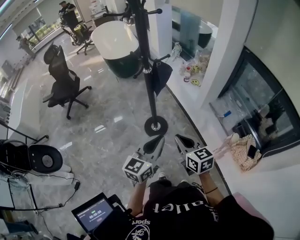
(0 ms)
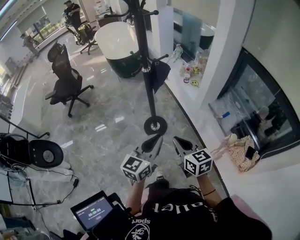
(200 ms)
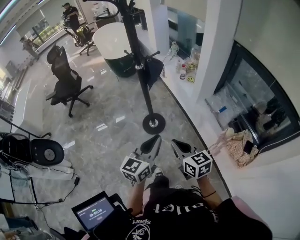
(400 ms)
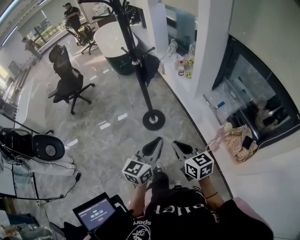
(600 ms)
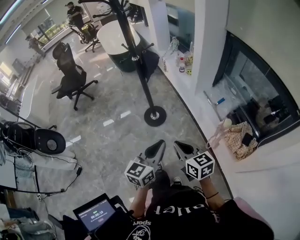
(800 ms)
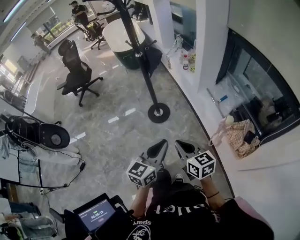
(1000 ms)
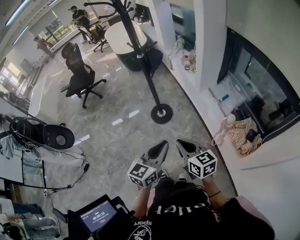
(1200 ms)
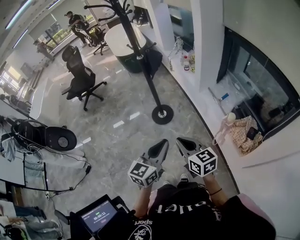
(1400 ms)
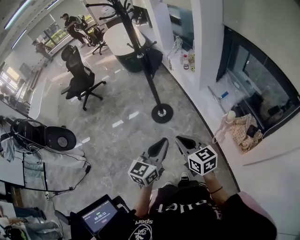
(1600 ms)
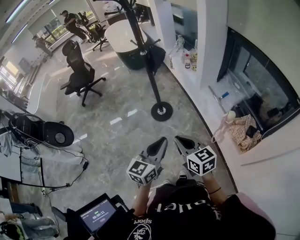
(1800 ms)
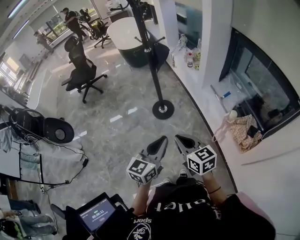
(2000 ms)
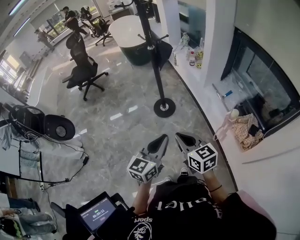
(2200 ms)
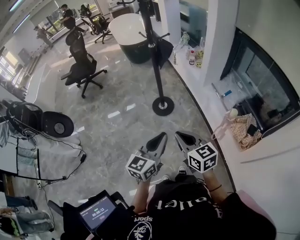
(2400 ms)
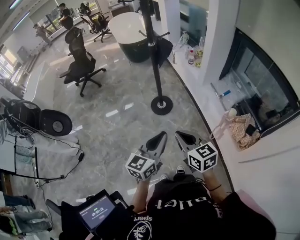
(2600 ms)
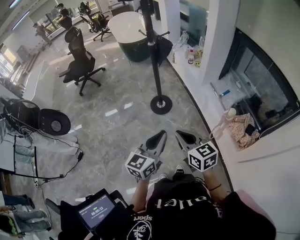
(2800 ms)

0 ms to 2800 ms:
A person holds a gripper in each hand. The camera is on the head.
0 ms to 1400 ms: The two grippers go roughly 30 cm backward and to the right.
1400 ms to 2800 ms: The two grippers go about 5 cm to the left.

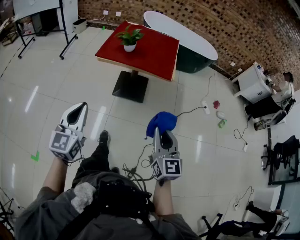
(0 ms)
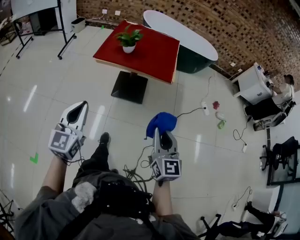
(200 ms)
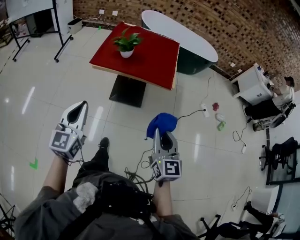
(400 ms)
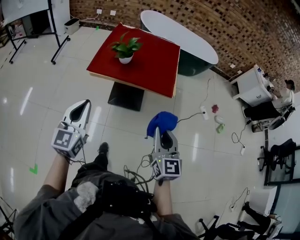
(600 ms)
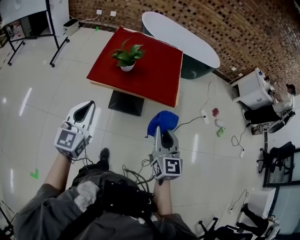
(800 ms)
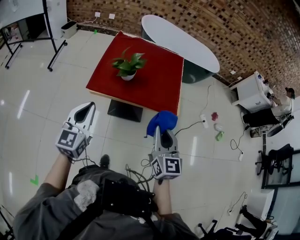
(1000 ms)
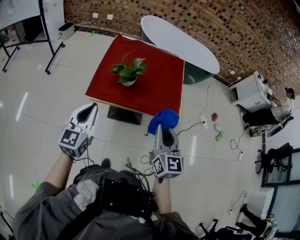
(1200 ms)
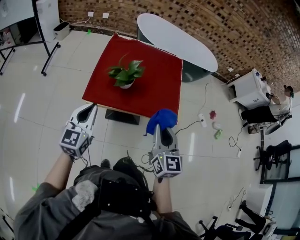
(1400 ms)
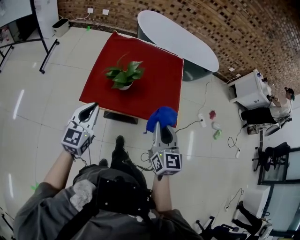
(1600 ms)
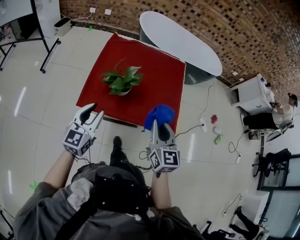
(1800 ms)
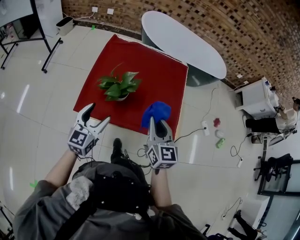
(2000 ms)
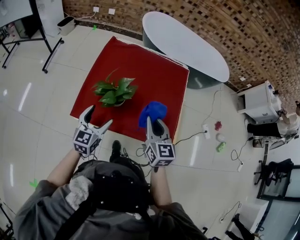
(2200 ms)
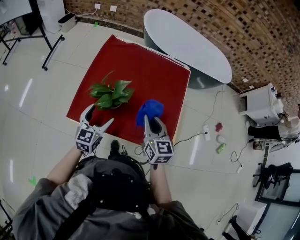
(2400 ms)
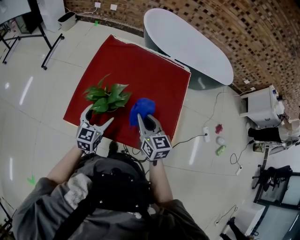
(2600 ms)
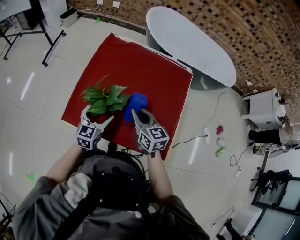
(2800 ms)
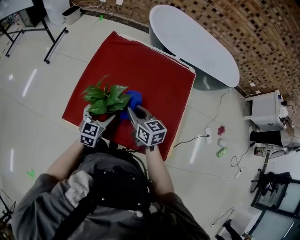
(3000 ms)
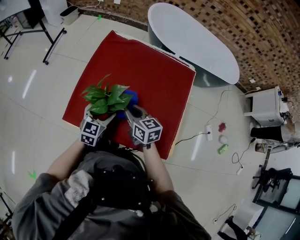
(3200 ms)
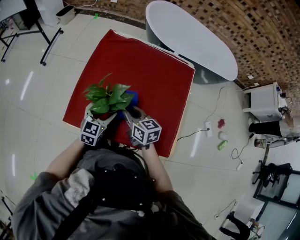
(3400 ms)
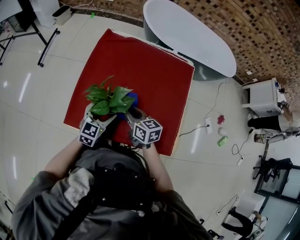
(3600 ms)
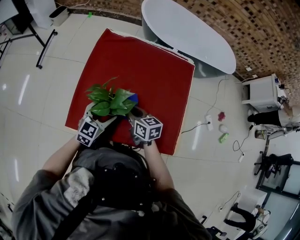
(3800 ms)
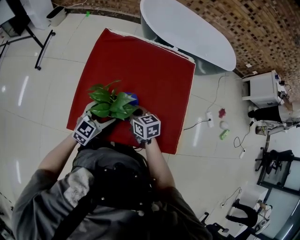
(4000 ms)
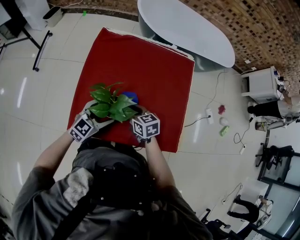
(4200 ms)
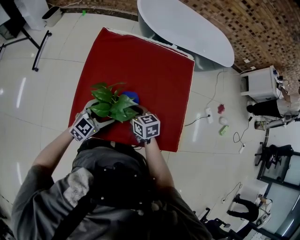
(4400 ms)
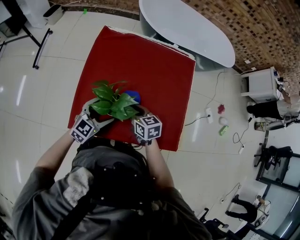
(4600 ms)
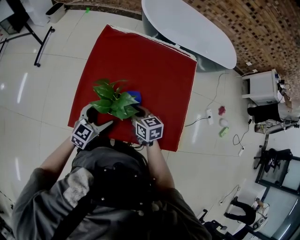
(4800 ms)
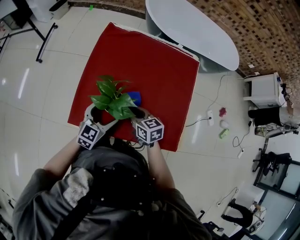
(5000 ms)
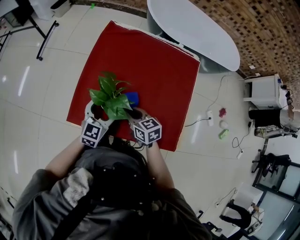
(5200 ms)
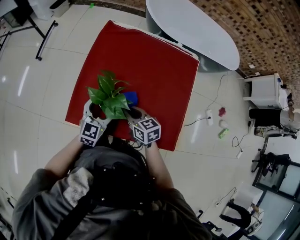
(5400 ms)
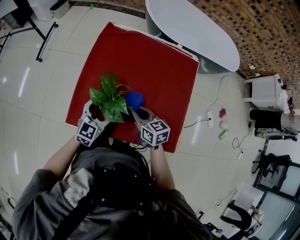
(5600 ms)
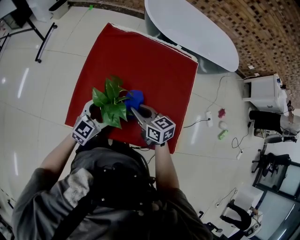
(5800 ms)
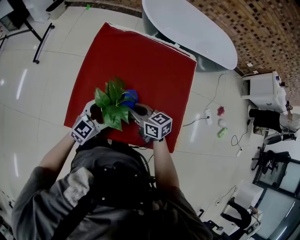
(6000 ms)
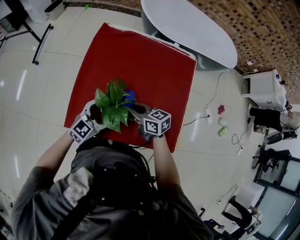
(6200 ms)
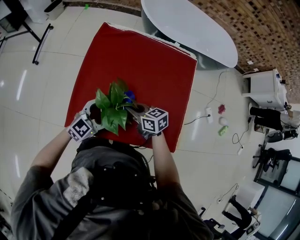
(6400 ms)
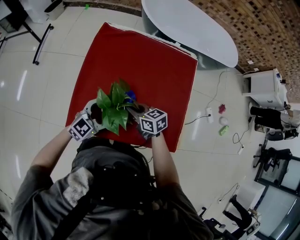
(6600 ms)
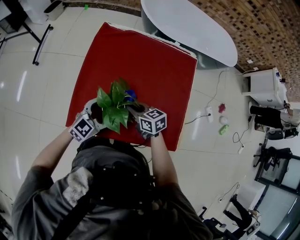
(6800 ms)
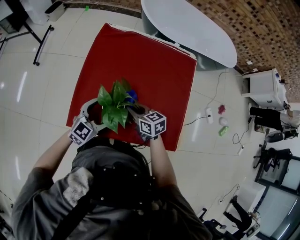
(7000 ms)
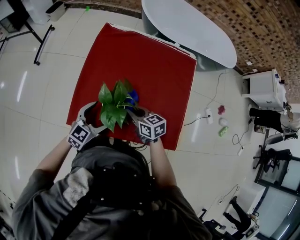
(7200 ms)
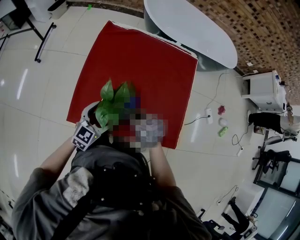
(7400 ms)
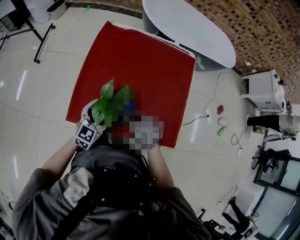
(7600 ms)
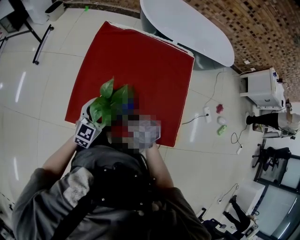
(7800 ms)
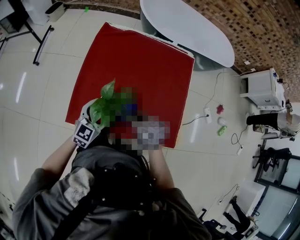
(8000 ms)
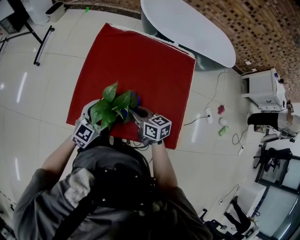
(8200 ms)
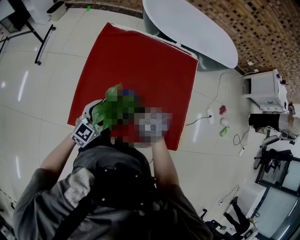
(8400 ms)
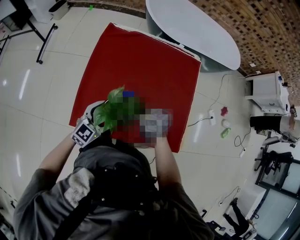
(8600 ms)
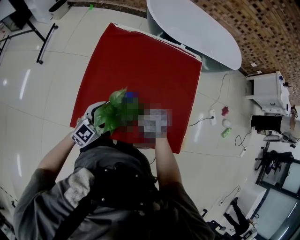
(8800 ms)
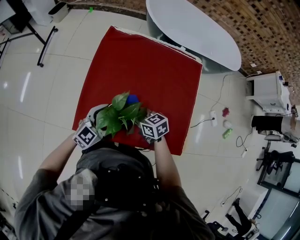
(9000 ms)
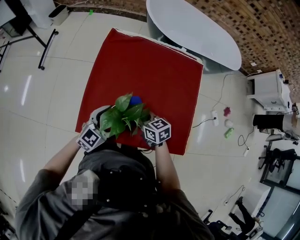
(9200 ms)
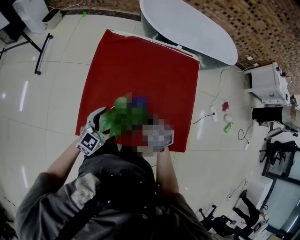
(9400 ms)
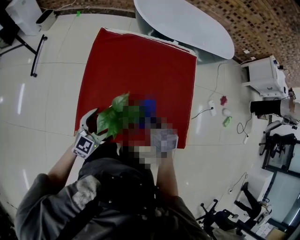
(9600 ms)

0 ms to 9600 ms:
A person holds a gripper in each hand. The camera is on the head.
0 ms to 1600 ms: The pair of grippers is taken forward, approximately 60 cm.
1600 ms to 3200 ms: The right gripper shifts about 40 cm forward and downward, and swivels some 40 degrees. The left gripper travels forward, downward and to the right by some 35 cm, and opens up.
3200 ms to 4800 ms: The right gripper shifts about 5 cm downward; the left gripper swivels roughly 20 degrees.
4800 ms to 6400 ms: The grippers make only small movements.
6400 ms to 8000 ms: The right gripper shifts roughly 10 cm backward.
8000 ms to 9600 ms: The left gripper travels to the left by about 5 cm; the right gripper ends up approximately 5 cm from where it was, and turns by roughly 20 degrees.

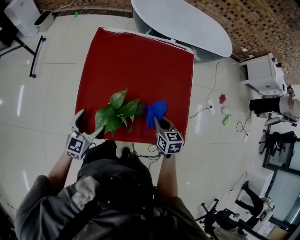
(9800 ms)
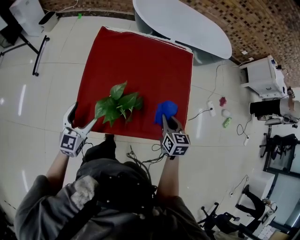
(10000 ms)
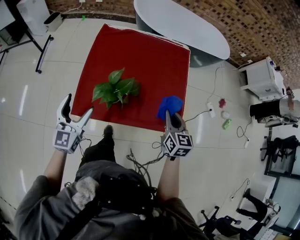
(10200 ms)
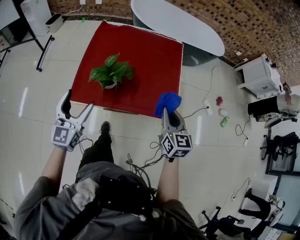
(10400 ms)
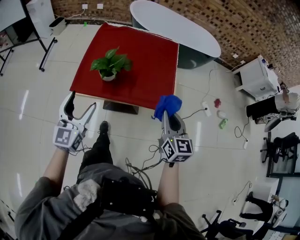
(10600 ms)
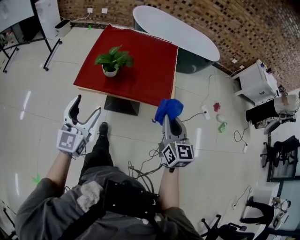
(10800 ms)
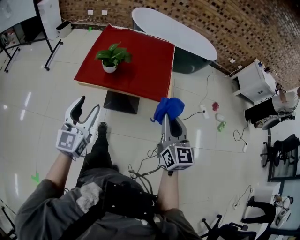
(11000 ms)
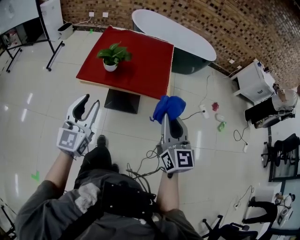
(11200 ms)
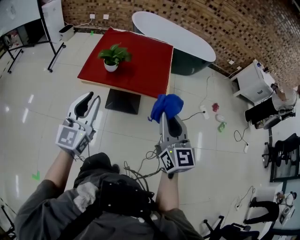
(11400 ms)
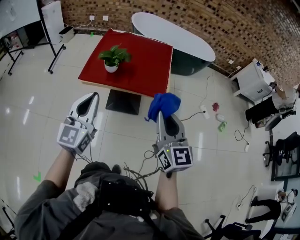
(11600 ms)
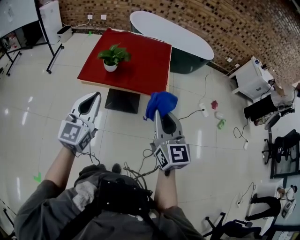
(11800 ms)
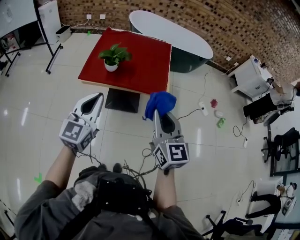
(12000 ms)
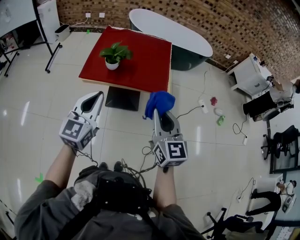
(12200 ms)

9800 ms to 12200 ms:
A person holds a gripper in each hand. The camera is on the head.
9800 ms to 11000 ms: Both grippers are carried backward, roughly 50 cm. Both grippers move upward, some 25 cm. The right gripper tilts its fingers roughly 40 degrees upward. The left gripper rotates some 30 degrees, and closes up.
11000 ms to 12200 ms: The right gripper is displaced backward and to the left by approximately 10 cm, while the left gripper travels upward by some 5 cm, and closes up.

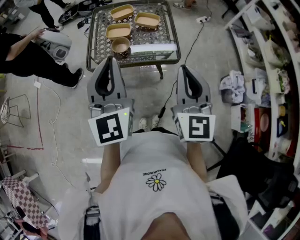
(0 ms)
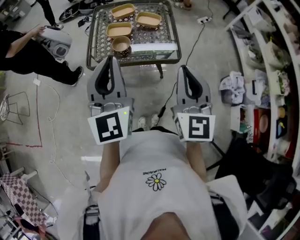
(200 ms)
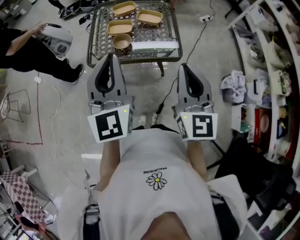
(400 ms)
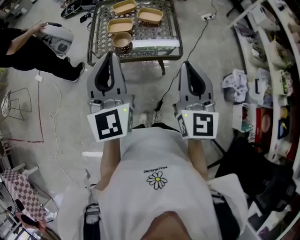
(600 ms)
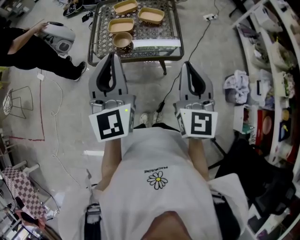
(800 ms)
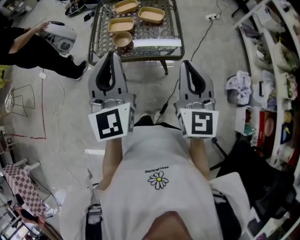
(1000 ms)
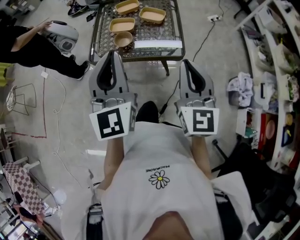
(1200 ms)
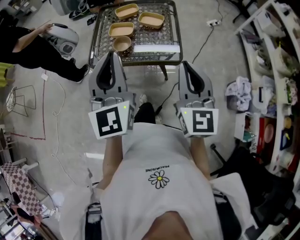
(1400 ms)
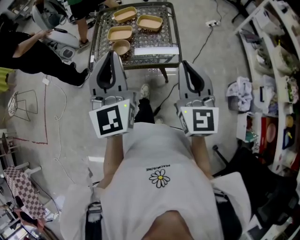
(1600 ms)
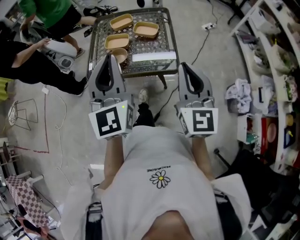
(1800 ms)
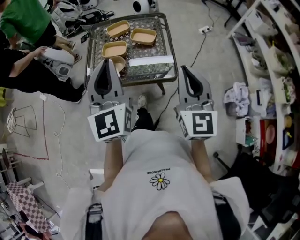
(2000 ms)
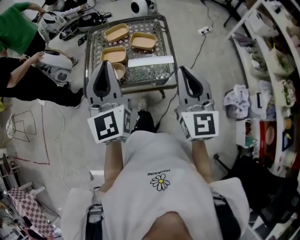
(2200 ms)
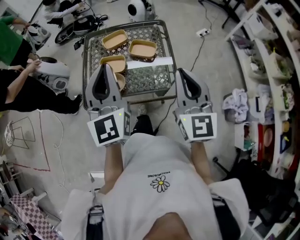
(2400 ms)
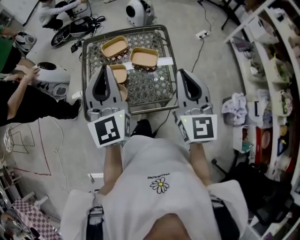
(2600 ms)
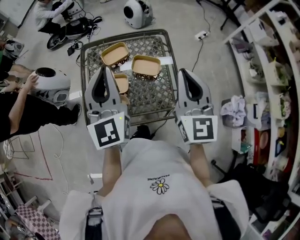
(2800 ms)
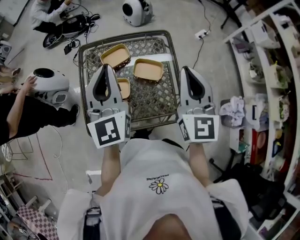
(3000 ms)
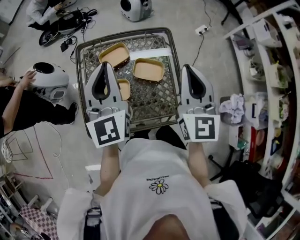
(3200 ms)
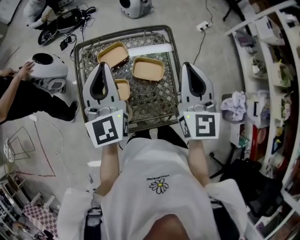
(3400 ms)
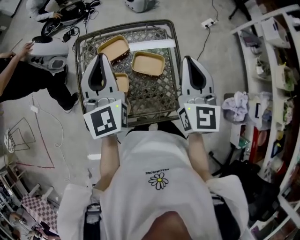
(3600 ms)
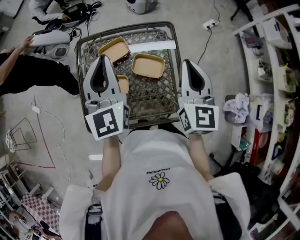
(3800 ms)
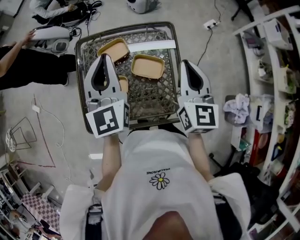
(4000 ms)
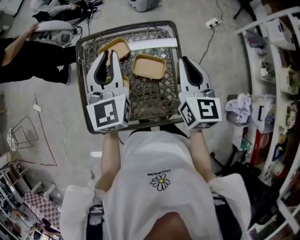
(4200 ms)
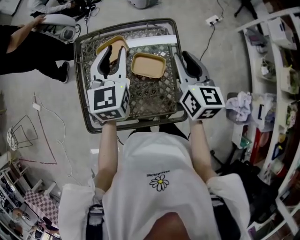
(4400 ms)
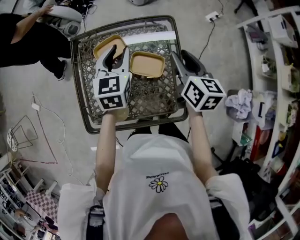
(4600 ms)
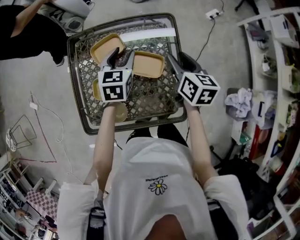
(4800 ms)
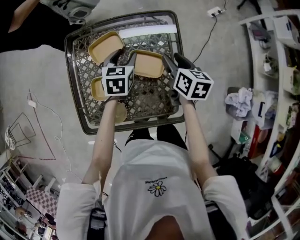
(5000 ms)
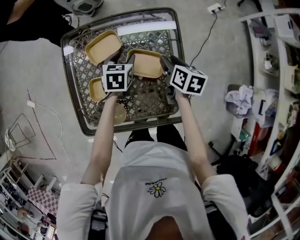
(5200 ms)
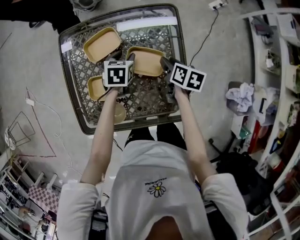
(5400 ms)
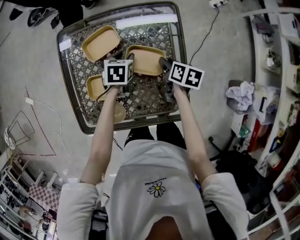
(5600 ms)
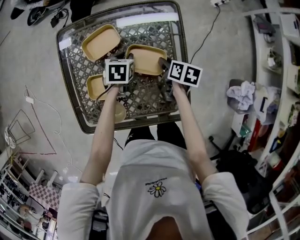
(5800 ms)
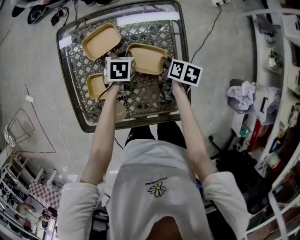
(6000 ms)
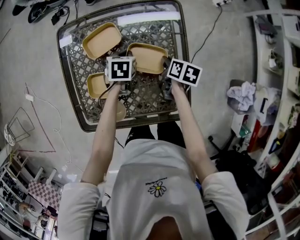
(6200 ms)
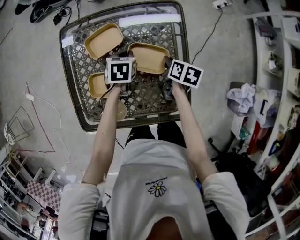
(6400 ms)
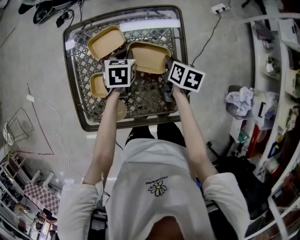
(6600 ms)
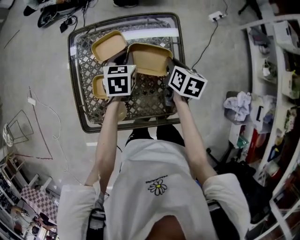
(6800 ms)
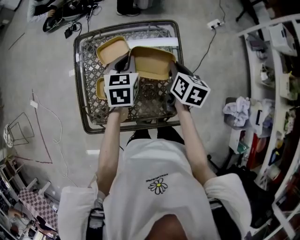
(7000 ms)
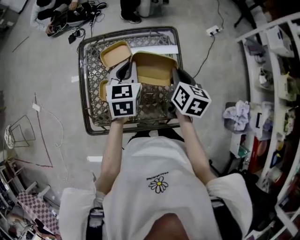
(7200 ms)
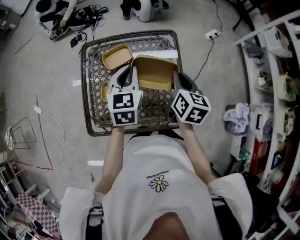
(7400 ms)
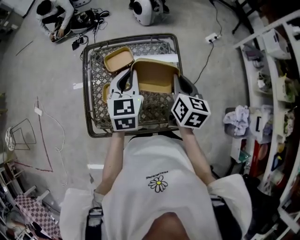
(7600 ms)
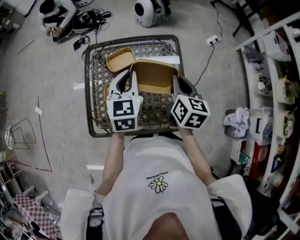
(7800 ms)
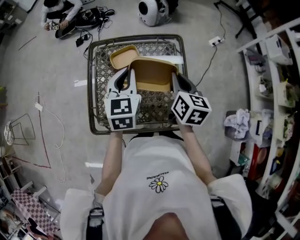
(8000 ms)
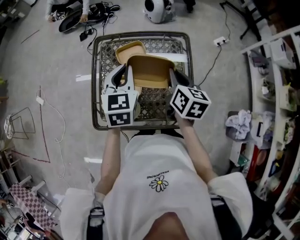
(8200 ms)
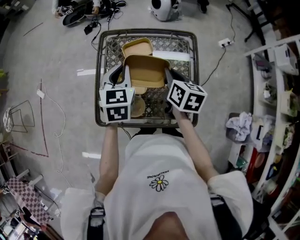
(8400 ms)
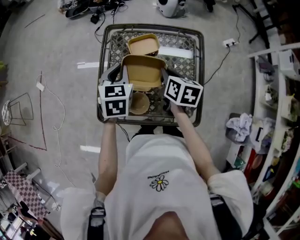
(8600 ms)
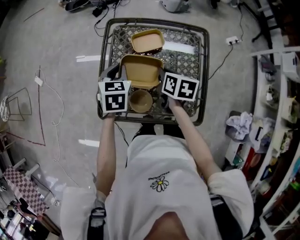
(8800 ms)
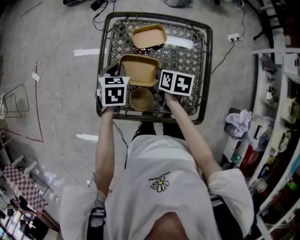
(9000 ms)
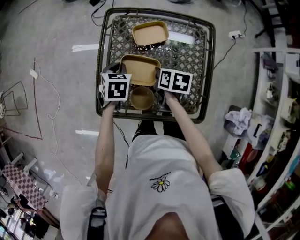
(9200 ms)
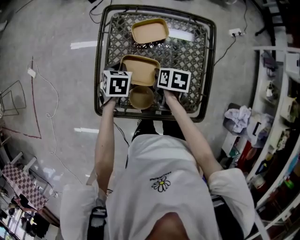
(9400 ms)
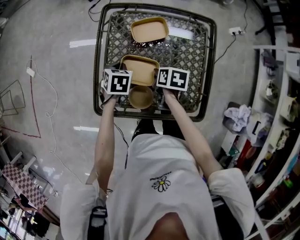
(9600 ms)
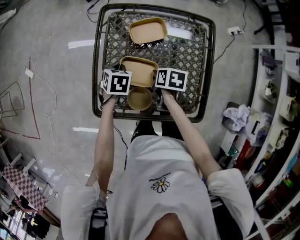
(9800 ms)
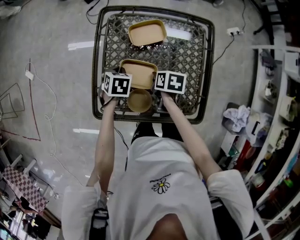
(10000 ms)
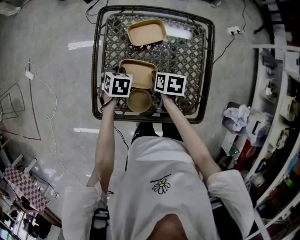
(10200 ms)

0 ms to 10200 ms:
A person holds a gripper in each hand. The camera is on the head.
0 ms to 1400 ms: The right gripper shifts by approximately 5 cm.
1400 ms to 3000 ms: Both grippers move forward, roughly 40 cm.
3000 ms to 4400 ms: The left gripper shifts approximately 15 cm forward, downward and to the right, changes its angle by roughly 20 degrees, and opens its fingers. Meanwhile the right gripper moves forward and downward, roughly 15 cm, and changes its angle by about 30 degrees.
4400 ms to 5800 ms: The grippers both shift downward by roughly 30 cm. The left gripper tilts its fingers about 50 degrees downward, and opens, then closes once more. The right gripper points its fingers some 30 degrees further downward.
5800 ms to 7200 ms: The two grippers go about 25 cm upward. The right gripper swivels roughly 30 degrees, and closes its fingers. Meanwhile the left gripper tilts its fingers approximately 30 degrees upward, and closes.
7200 ms to 8800 ms: The two grippers go roughly 20 cm to the left. The right gripper changes its angle by some 30 degrees.
8800 ms to 10200 ms: Both grippers travel together downward, approximately 15 cm. The left gripper swivels about 20 degrees.
